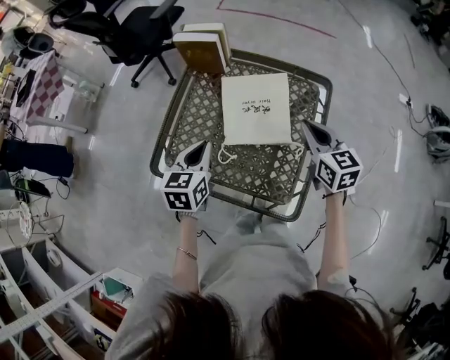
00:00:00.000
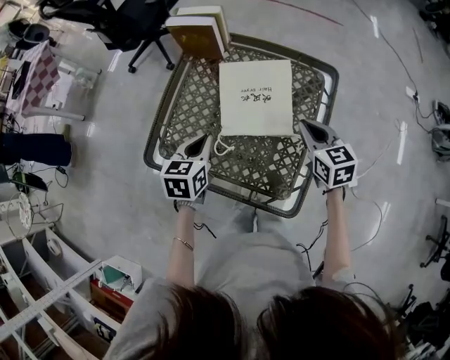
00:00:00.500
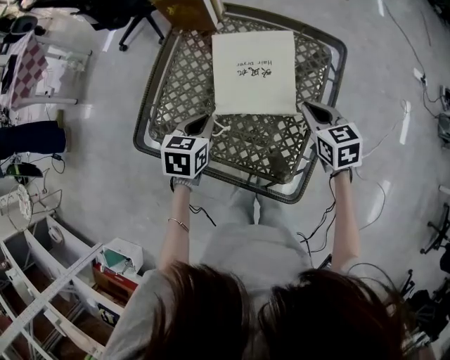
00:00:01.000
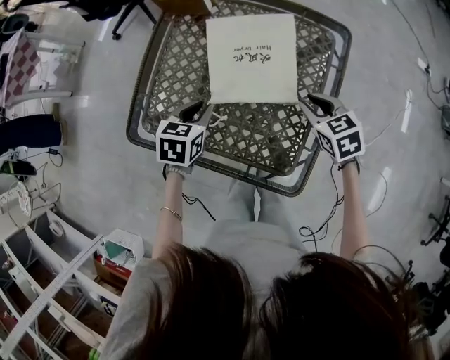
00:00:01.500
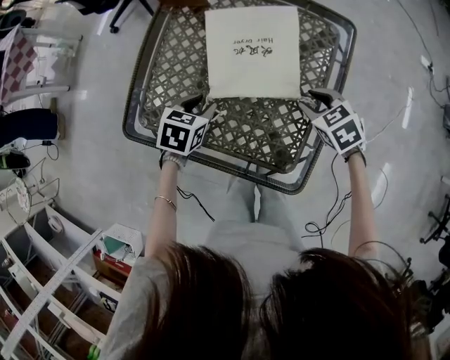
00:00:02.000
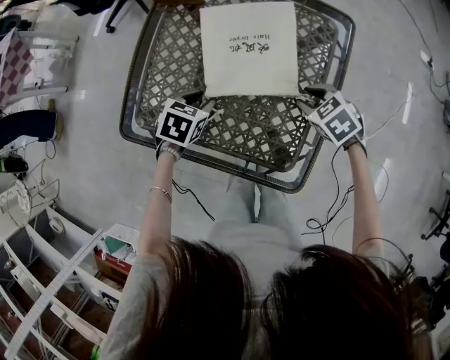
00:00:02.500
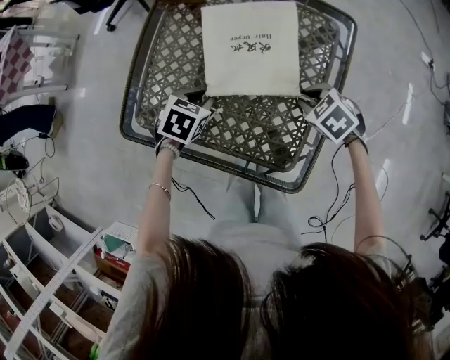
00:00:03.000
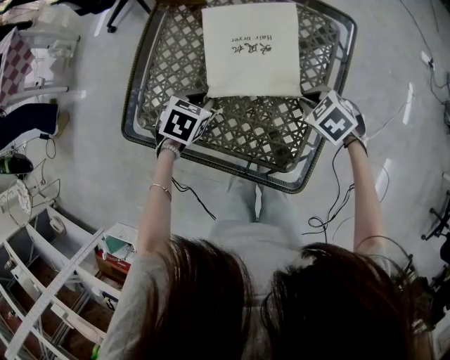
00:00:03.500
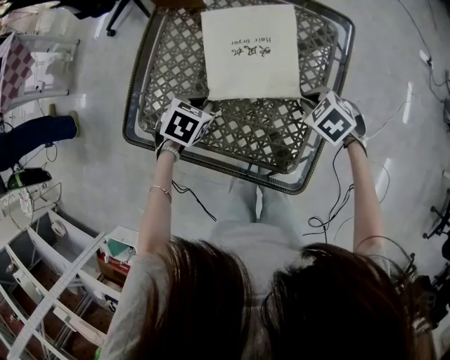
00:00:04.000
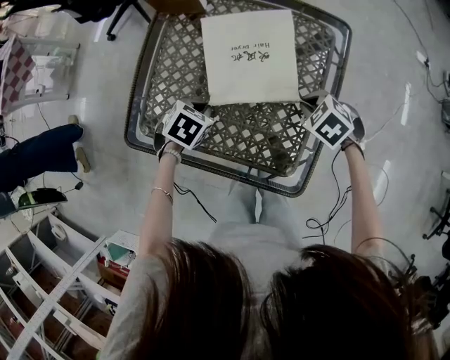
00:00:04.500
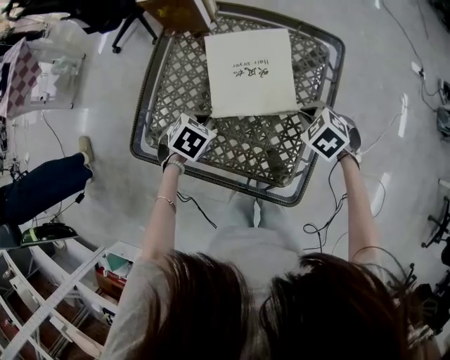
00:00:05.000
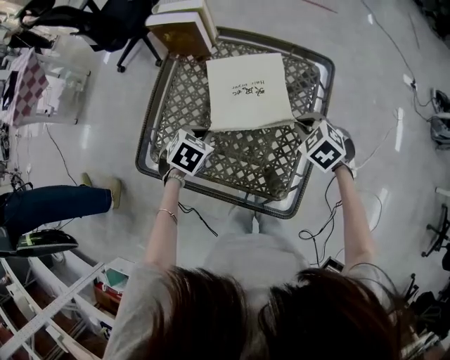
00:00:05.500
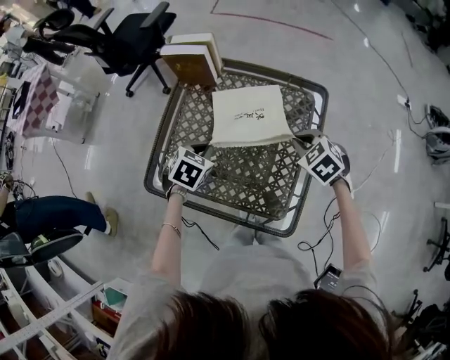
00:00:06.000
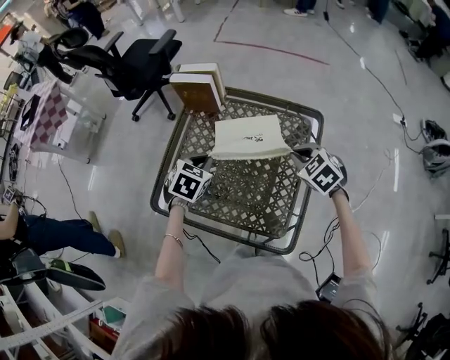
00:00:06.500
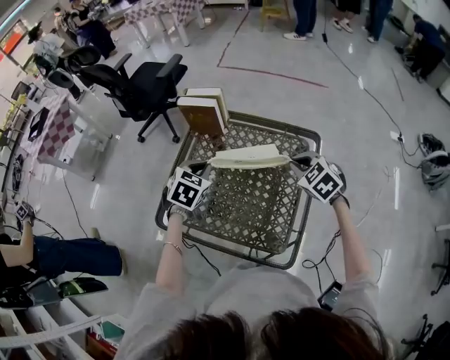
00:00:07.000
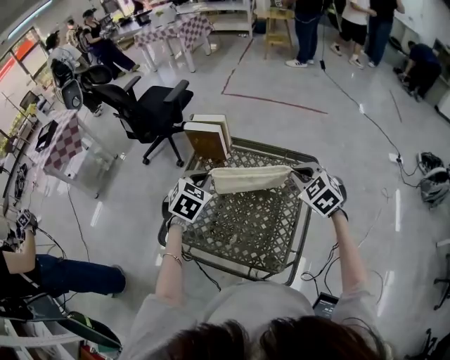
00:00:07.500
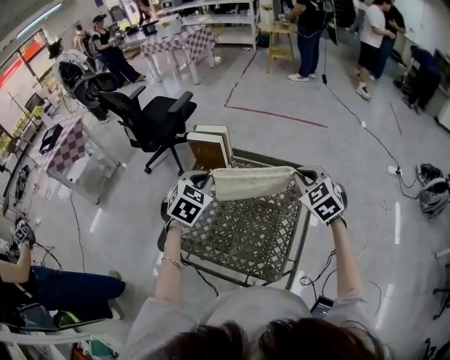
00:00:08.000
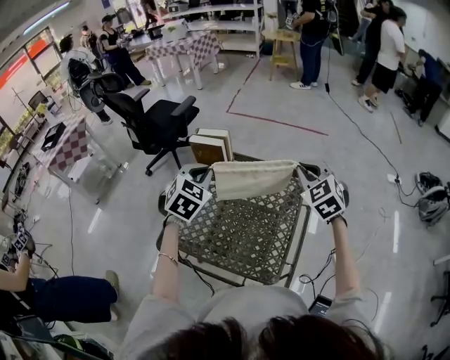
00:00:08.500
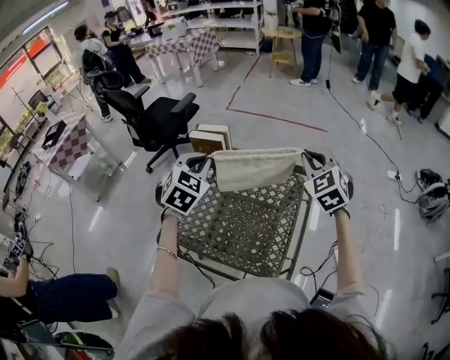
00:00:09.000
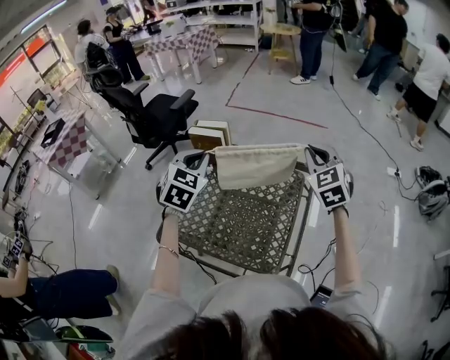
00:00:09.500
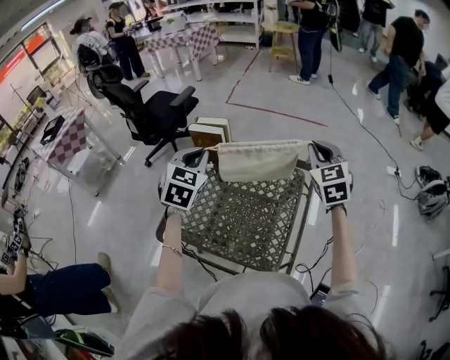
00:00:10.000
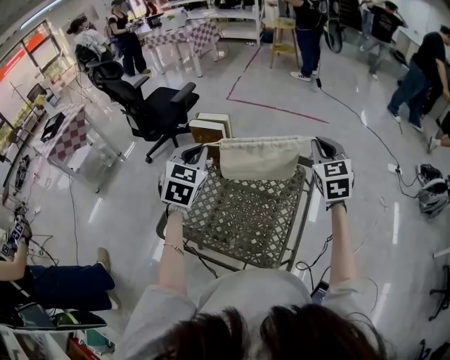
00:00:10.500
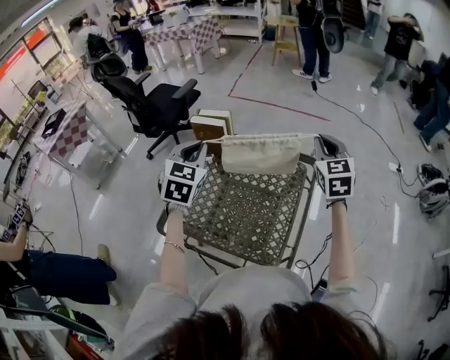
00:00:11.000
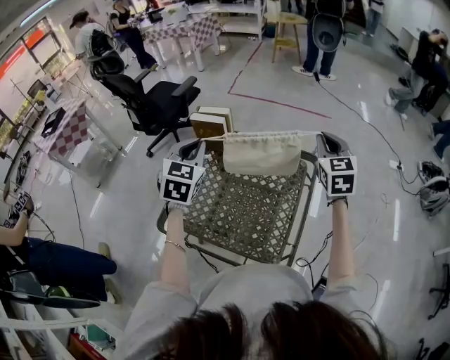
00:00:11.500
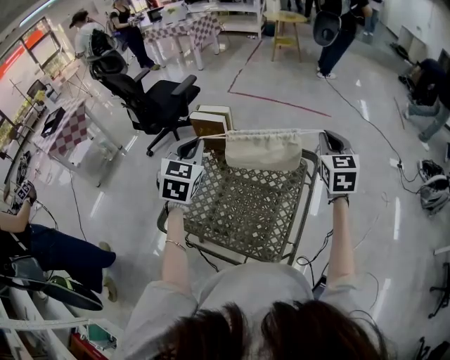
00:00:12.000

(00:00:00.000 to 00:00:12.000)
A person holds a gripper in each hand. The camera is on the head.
00:00:00.000 - 00:00:02.000: The two grippers go about 20 cm downward. The right gripper tilts its fingers approximately 40 degrees downward, and opens up; the left gripper changes its angle by about 30 degrees, and opens its fingers.
00:00:02.000 - 00:00:04.000: The right gripper closes. The left gripper closes.
00:00:04.000 - 00:00:06.000: Both grippers move upward, roughly 10 cm.
00:00:06.000 - 00:00:08.000: Both grippers travel together upward, some 20 cm. The right gripper turns by approximately 30 degrees, while the left gripper swivels approximately 30 degrees.
00:00:08.000 - 00:00:10.000: The grippers both shift upward by roughly 10 cm. The right gripper turns by approximately 20 degrees.
00:00:10.000 - 00:00:12.000: The grippers move only a little.

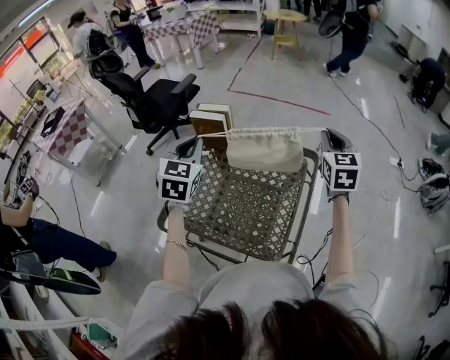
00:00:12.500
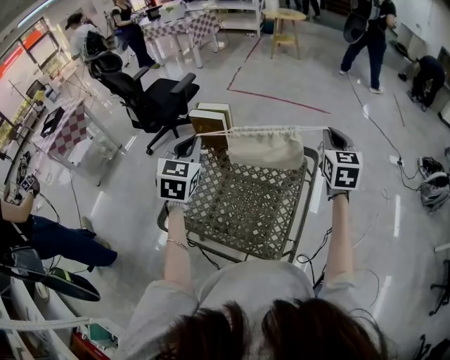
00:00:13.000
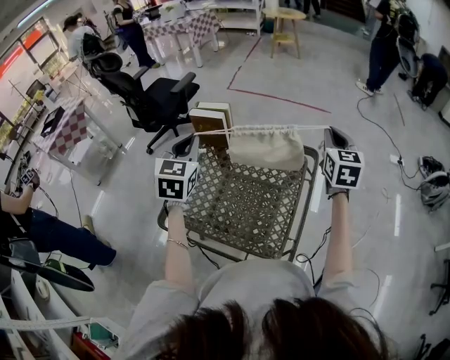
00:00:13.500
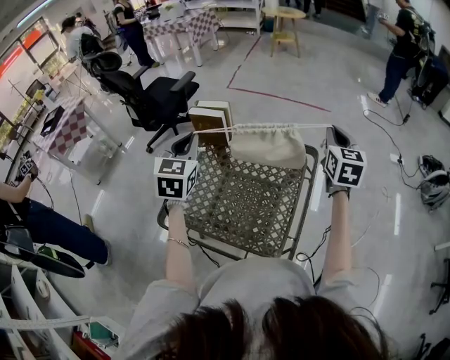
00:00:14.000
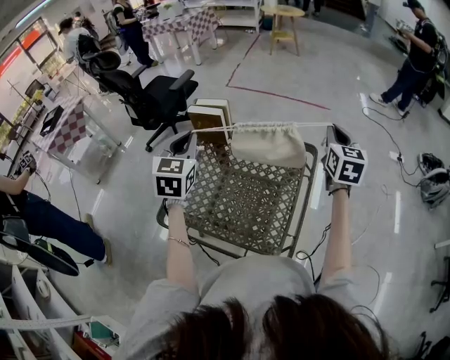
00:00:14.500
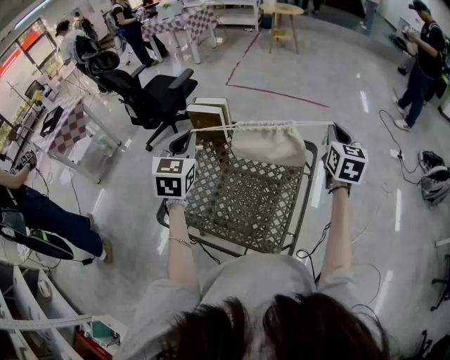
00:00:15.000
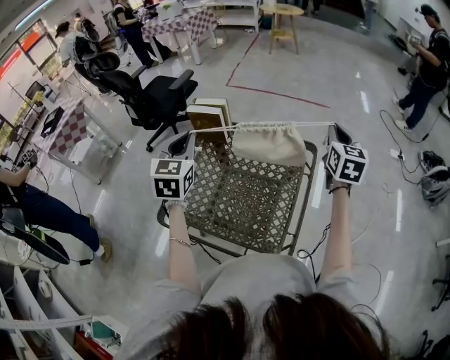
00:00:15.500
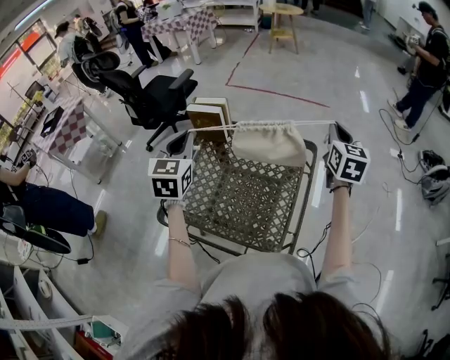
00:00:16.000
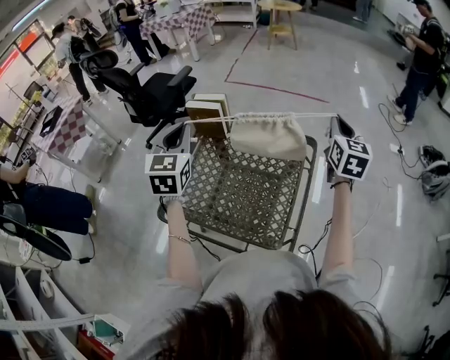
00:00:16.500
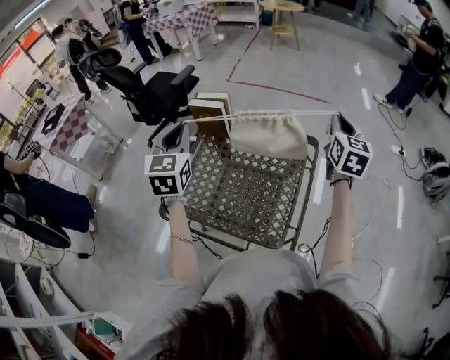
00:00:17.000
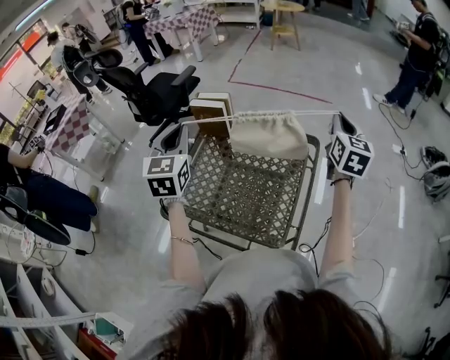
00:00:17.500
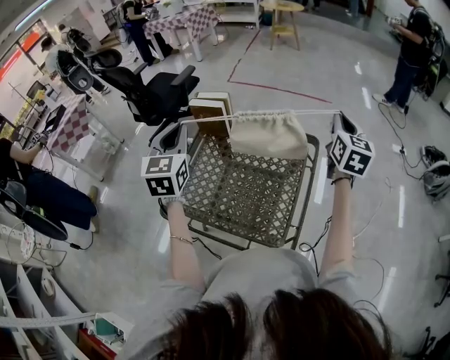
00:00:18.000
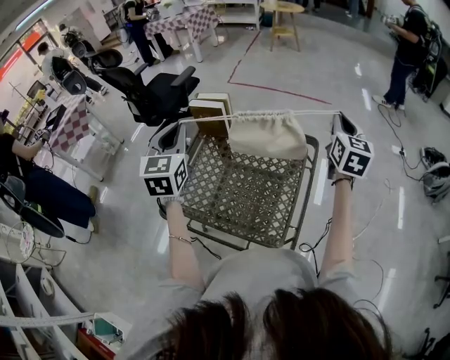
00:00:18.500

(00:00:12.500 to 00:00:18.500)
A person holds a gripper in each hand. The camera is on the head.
00:00:12.500 - 00:00:16.500: The grippers make only small movements.
00:00:16.500 - 00:00:18.500: The grippers move only a little.

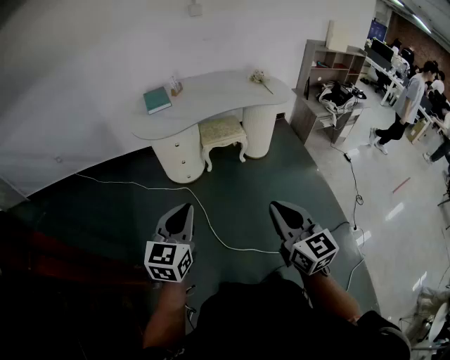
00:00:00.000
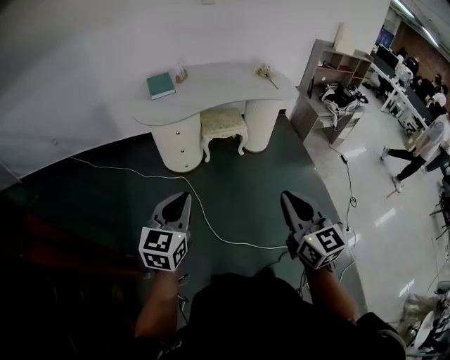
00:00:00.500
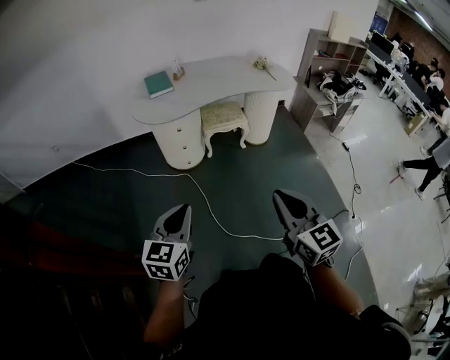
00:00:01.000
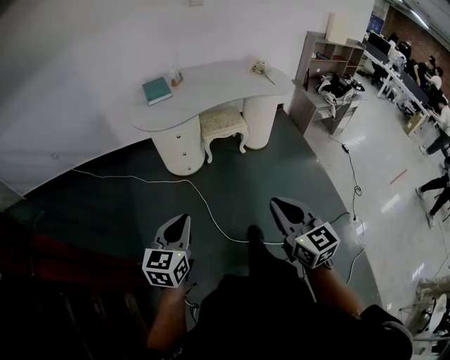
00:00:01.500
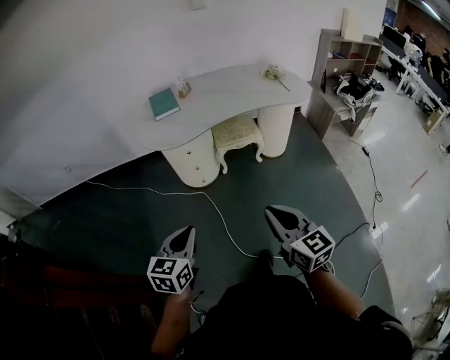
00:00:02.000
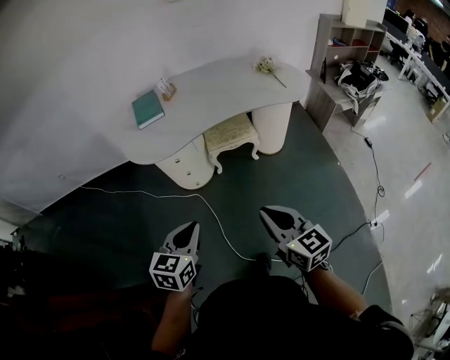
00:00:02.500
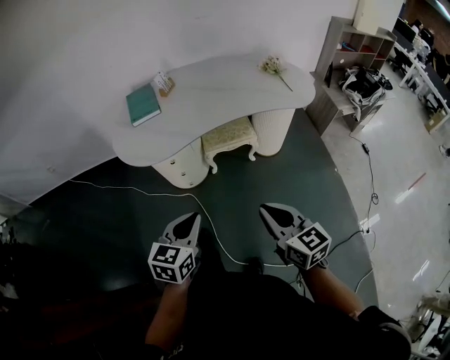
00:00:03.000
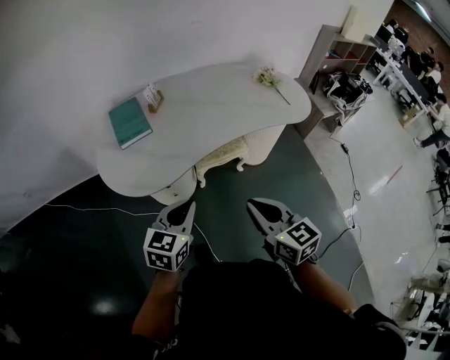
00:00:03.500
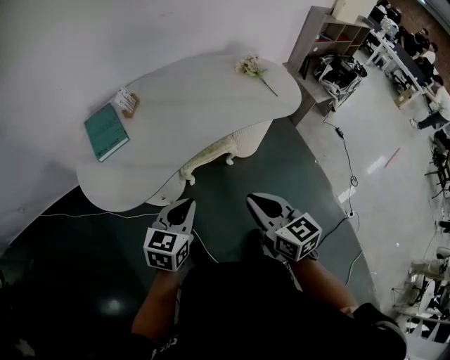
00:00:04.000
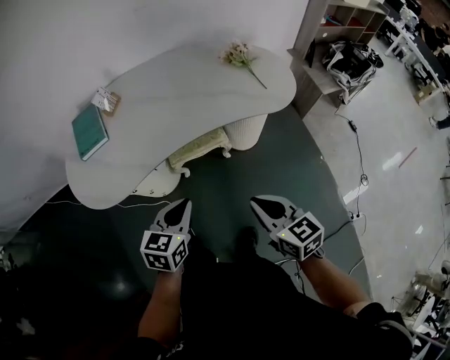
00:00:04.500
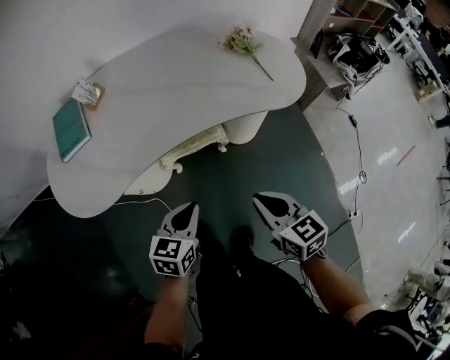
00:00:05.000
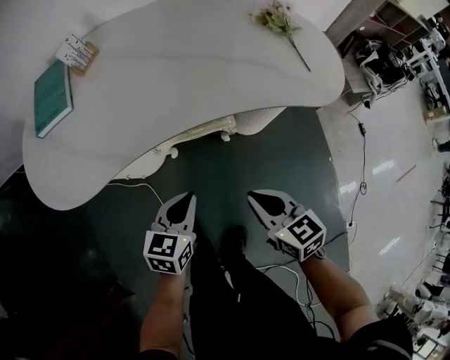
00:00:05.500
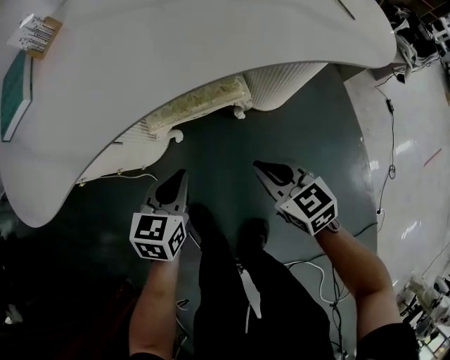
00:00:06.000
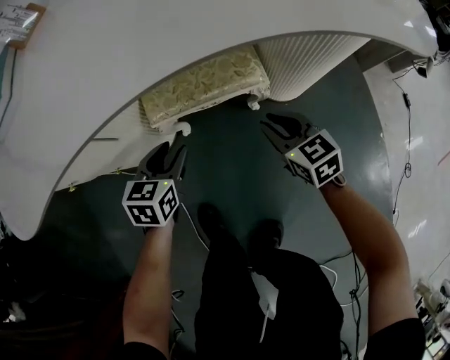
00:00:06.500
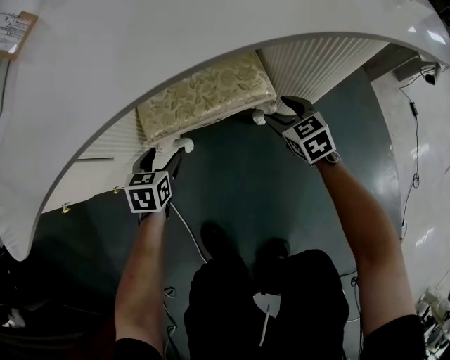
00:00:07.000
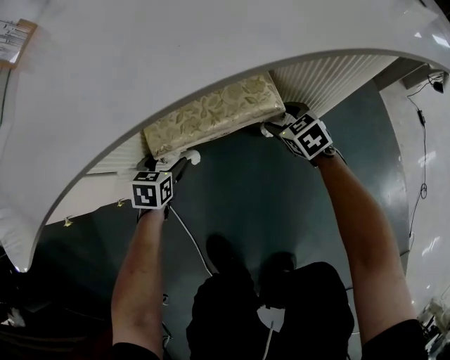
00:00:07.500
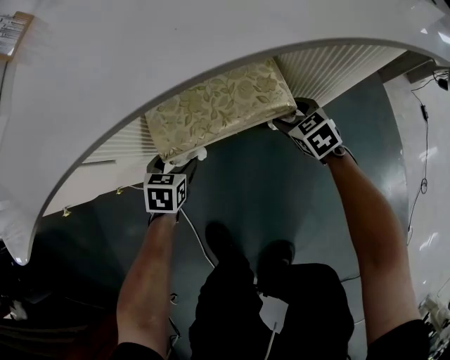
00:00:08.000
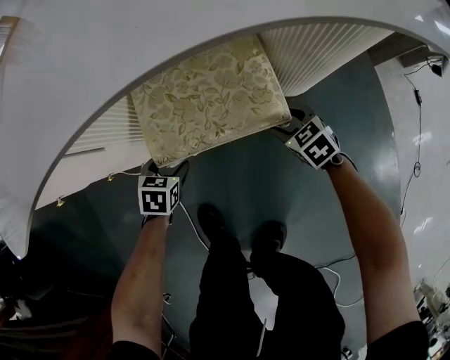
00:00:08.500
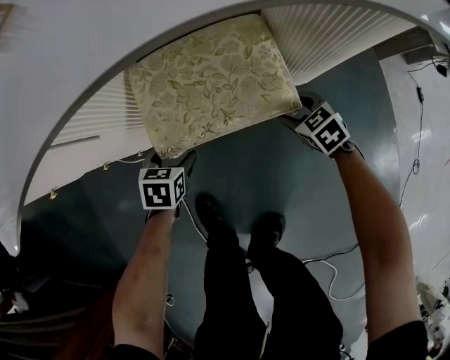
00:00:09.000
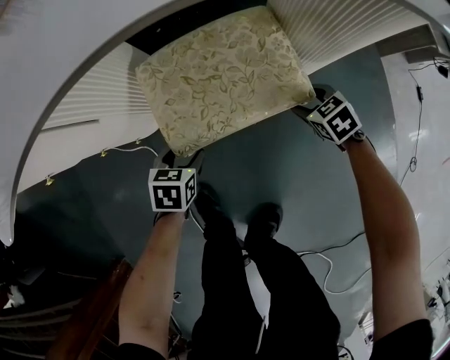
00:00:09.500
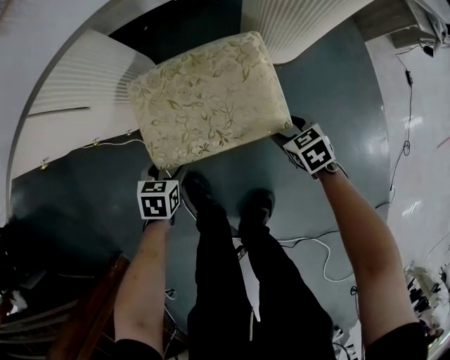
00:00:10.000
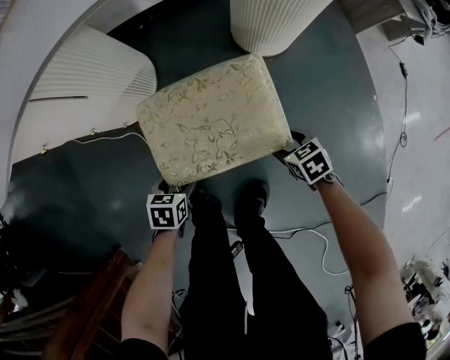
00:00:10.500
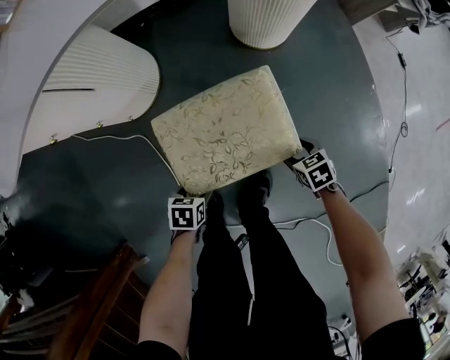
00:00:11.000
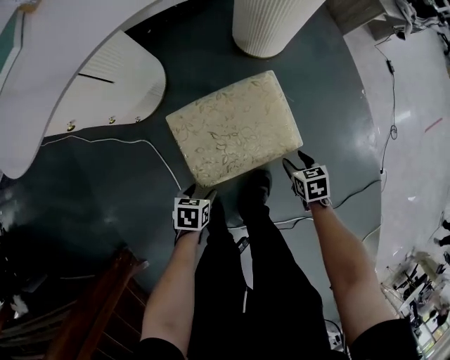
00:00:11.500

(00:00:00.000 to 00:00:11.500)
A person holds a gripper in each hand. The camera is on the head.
00:00:00.000 - 00:00:02.000: The left gripper is displaced forward, downward and to the left by approximately 15 cm. Meanwhile the right gripper heads forward, covering roughly 15 cm.
00:00:02.000 - 00:00:04.000: Both grippers are carried forward, about 40 cm. The left gripper swivels about 20 degrees.
00:00:04.000 - 00:00:06.000: The two grippers go some 40 cm downward. The right gripper swivels some 30 degrees.
00:00:06.000 - 00:00:07.500: The two grippers go approximately 35 cm downward and forward. The right gripper opens up; the left gripper opens its fingers.
00:00:07.500 - 00:00:09.500: The grippers move only a little.
00:00:09.500 - 00:00:11.500: The right gripper travels upward by approximately 5 cm, and changes its angle by roughly 30 degrees.
